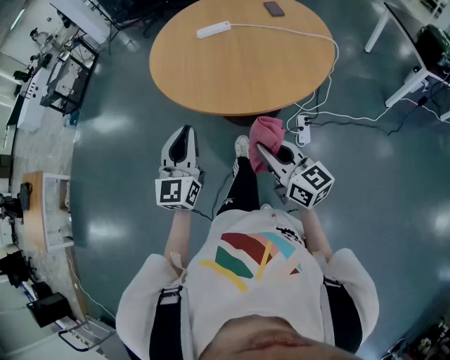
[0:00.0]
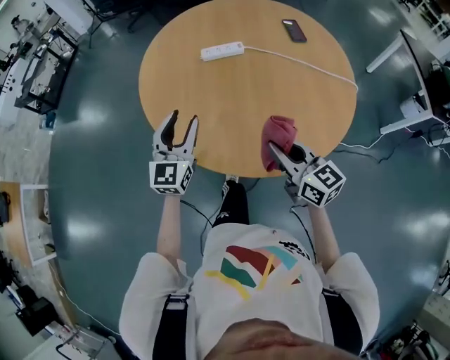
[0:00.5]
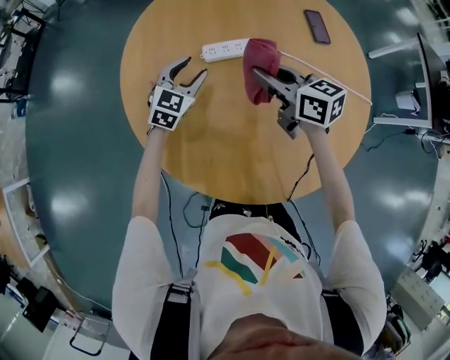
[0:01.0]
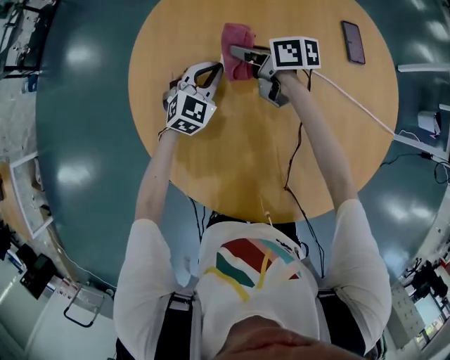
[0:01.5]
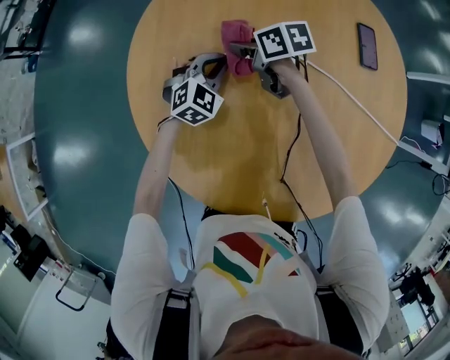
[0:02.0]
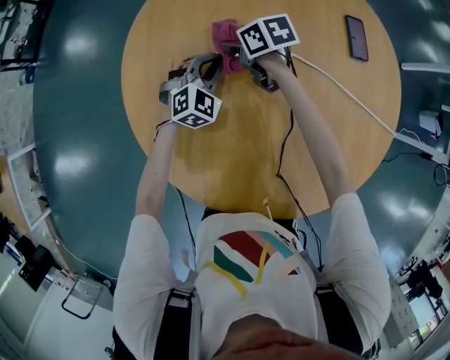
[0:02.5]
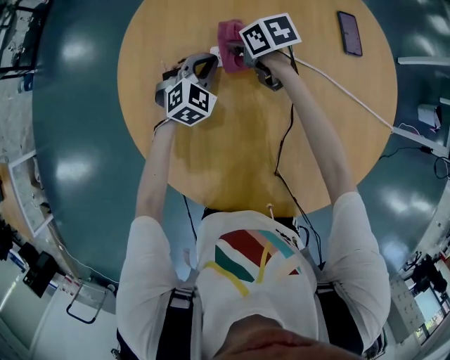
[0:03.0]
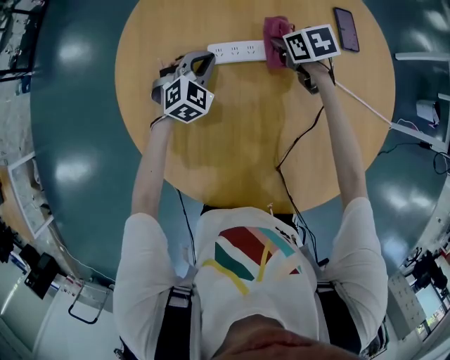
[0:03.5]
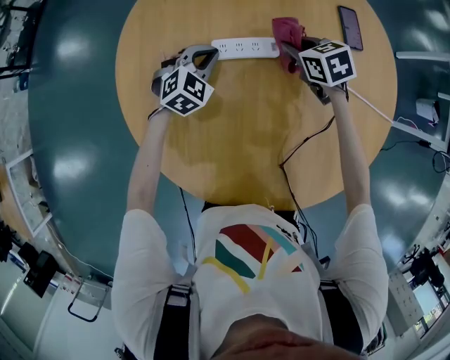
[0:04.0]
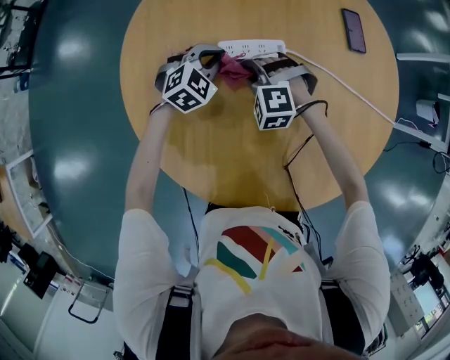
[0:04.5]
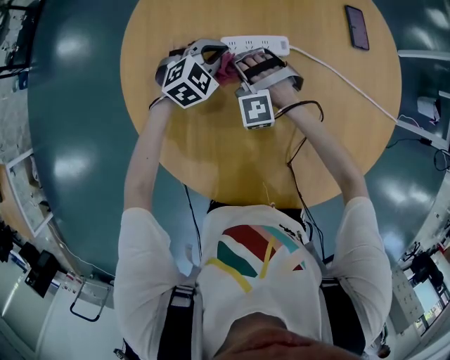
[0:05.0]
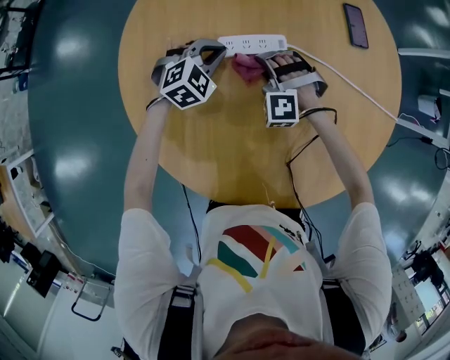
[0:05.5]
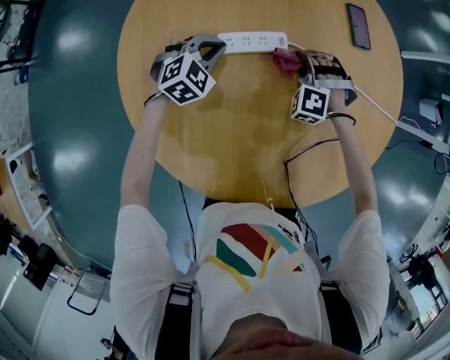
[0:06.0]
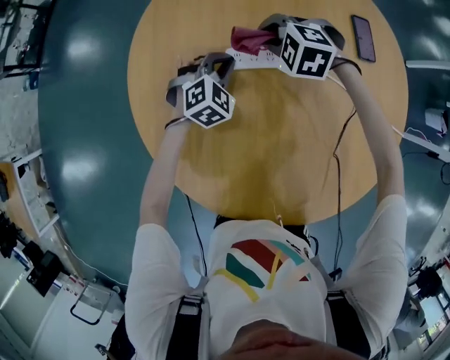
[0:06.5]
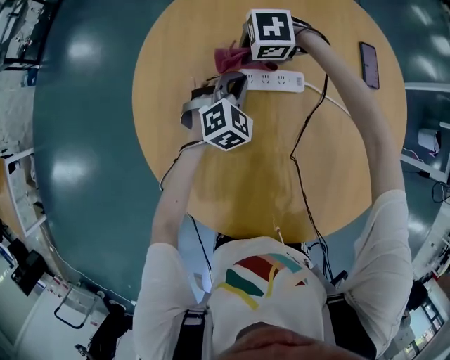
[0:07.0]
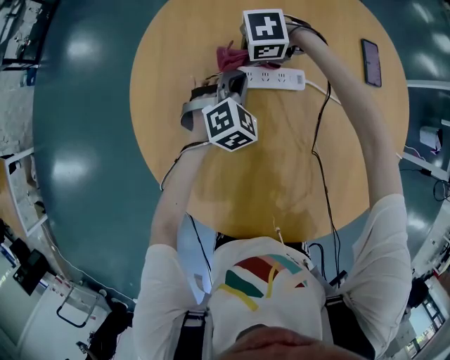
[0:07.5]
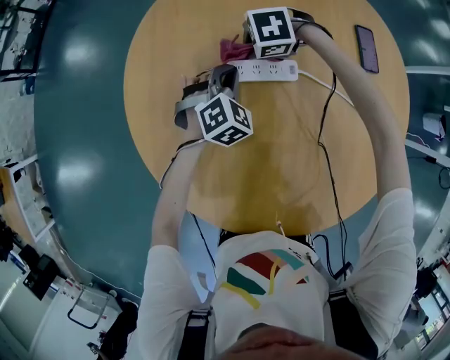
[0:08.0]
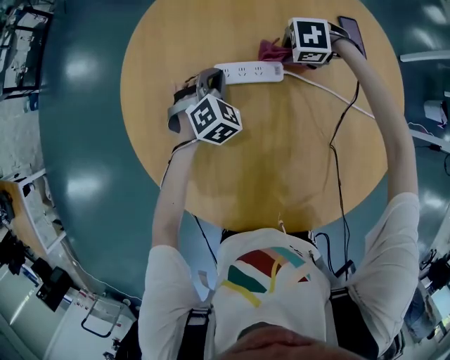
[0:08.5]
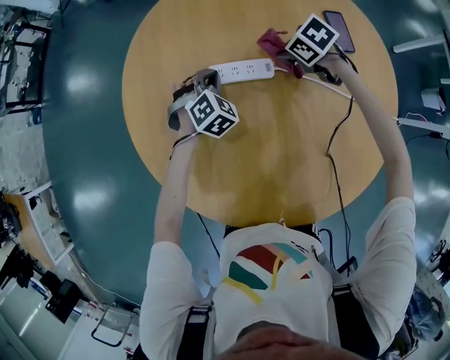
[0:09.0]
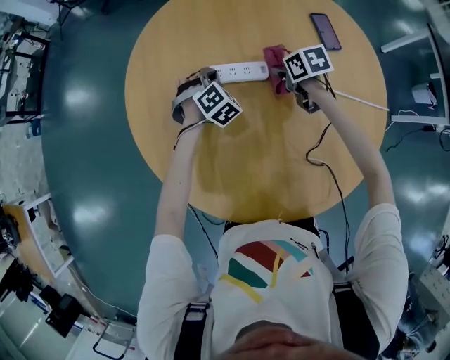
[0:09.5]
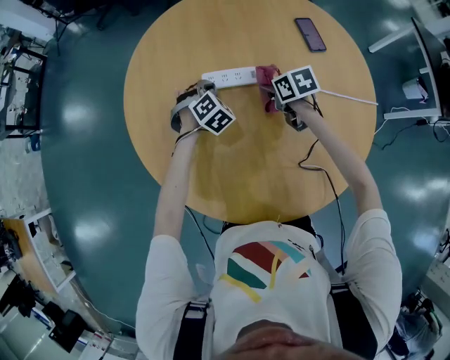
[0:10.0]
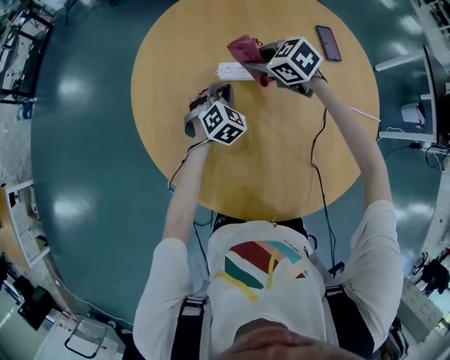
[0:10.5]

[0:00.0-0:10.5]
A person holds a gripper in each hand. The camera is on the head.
0:00.0 to 0:02.0: The pair of grippers is taken forward, roughly 70 cm. The left gripper angles its fingers downward, by about 40 degrees, and opens, then closes once more. Meanwhile the right gripper points its fingers some 40 degrees further downward.
0:02.0 to 0:04.0: The right gripper moves to the right, some 15 cm, and rotates some 30 degrees.
0:04.0 to 0:06.5: The right gripper rotates around the line of its fingers by some 60 degrees, counterclockwise from behind.
0:06.5 to 0:08.5: The right gripper moves roughly 15 cm, and changes its angle by roughly 30 degrees.
0:08.5 to 0:10.5: The right gripper moves some 15 cm, and turns by about 40 degrees. Meanwhile the left gripper shifts by approximately 10 cm.

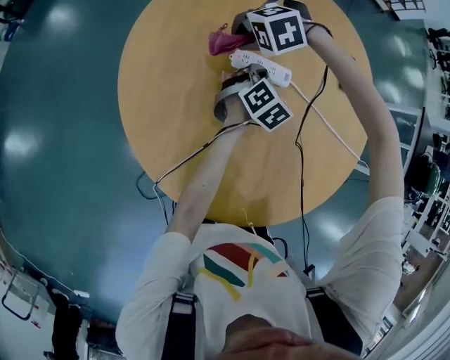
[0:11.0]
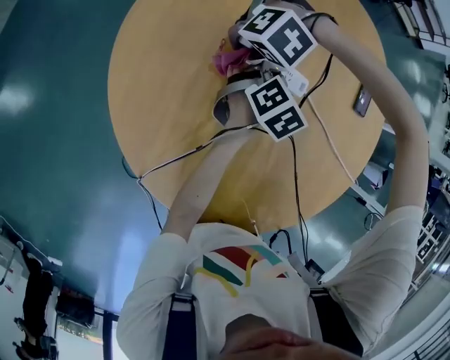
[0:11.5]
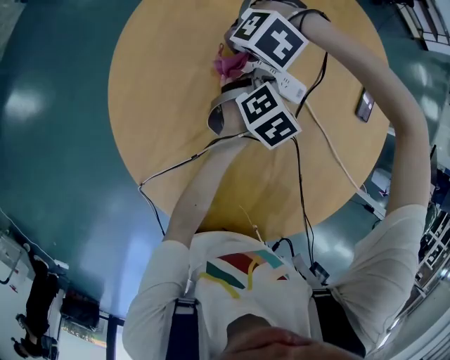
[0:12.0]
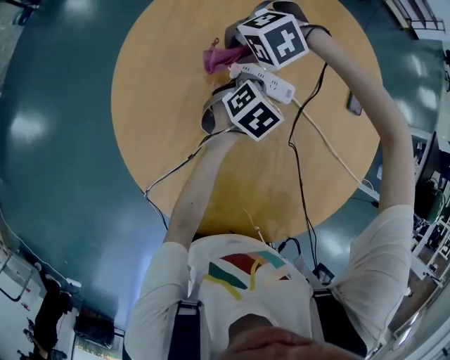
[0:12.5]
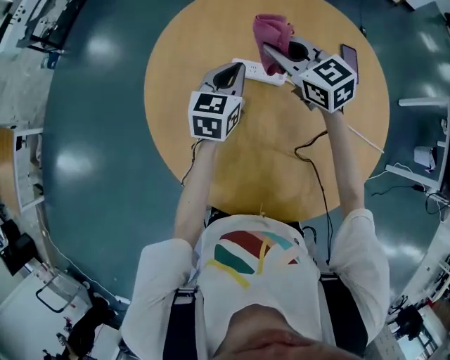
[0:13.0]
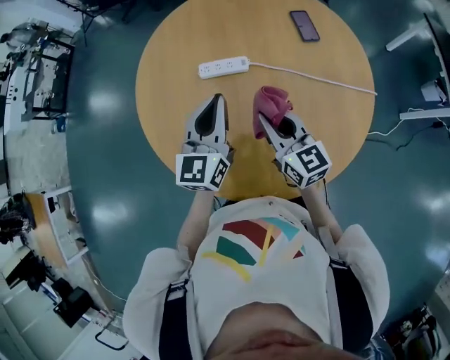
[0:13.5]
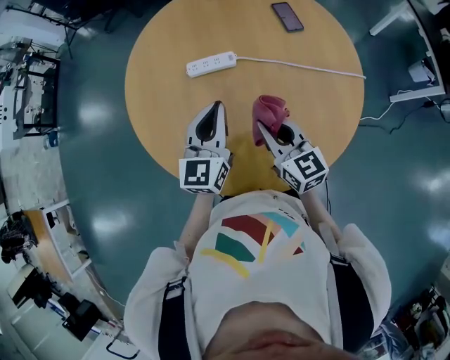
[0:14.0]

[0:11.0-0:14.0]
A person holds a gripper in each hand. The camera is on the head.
0:12.5 to 0:14.0: The left gripper ends up about 30 cm from where it was, and points its fingers roughly 40 degrees further upward, while the right gripper shifts by about 40 cm, and tilts its fingers roughly 70 degrees upward.

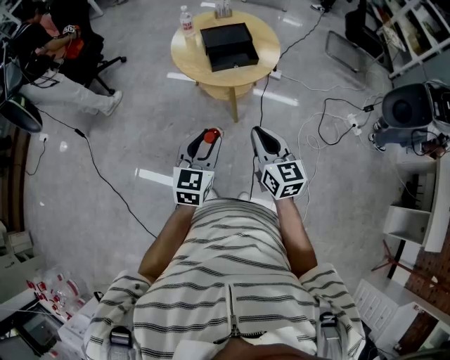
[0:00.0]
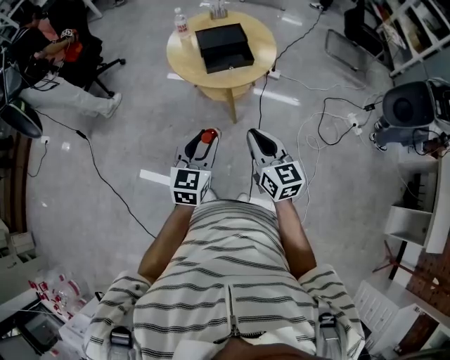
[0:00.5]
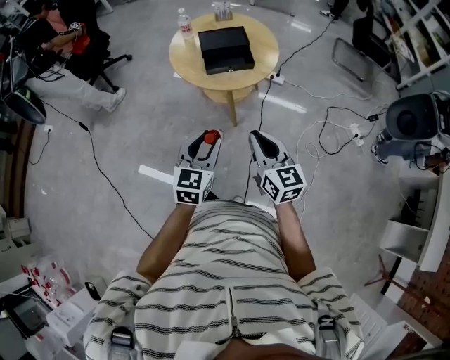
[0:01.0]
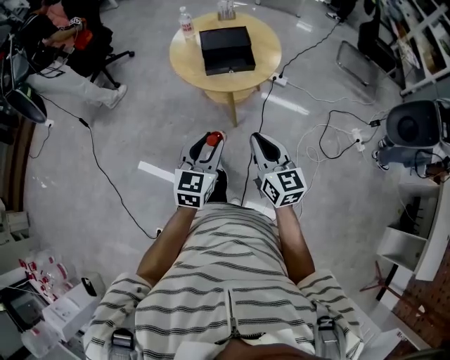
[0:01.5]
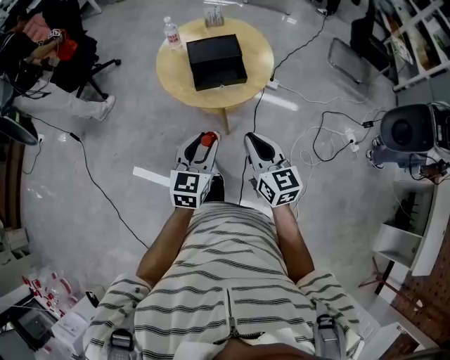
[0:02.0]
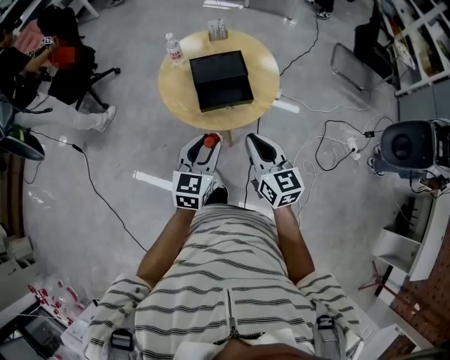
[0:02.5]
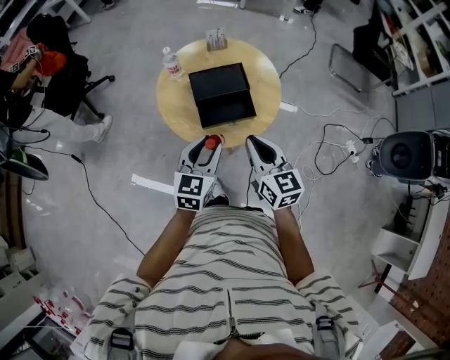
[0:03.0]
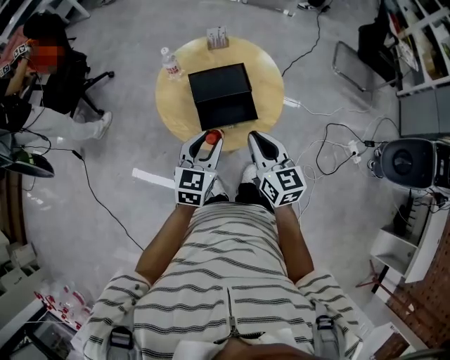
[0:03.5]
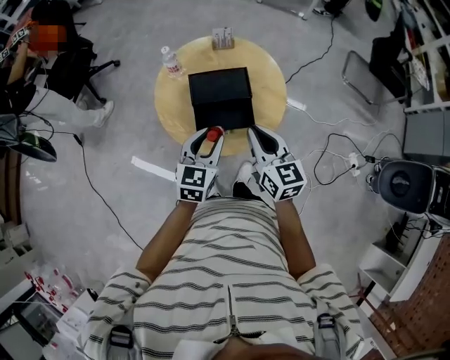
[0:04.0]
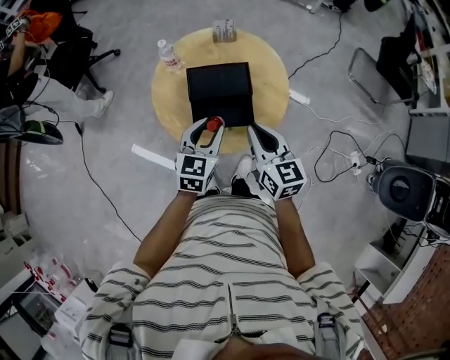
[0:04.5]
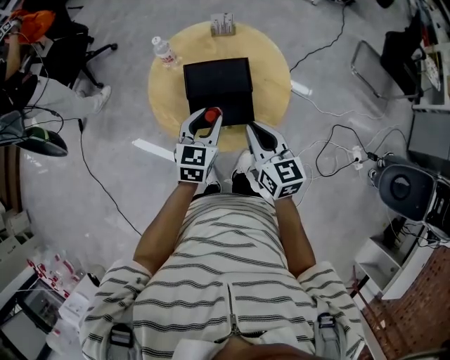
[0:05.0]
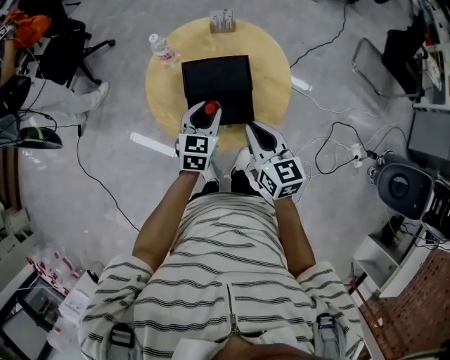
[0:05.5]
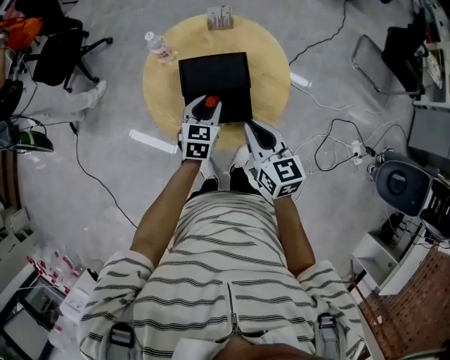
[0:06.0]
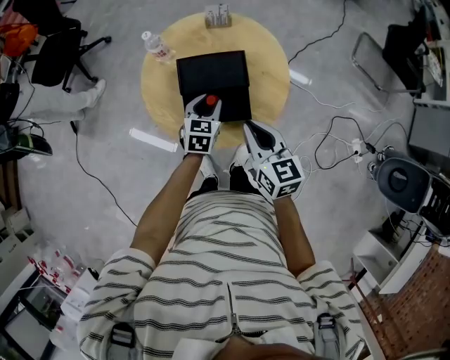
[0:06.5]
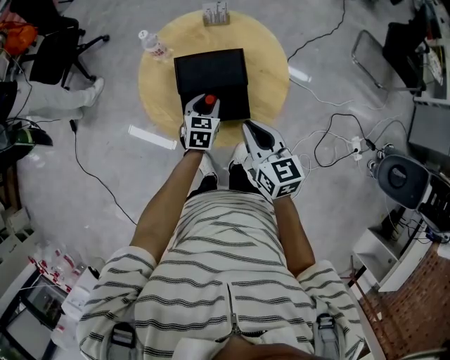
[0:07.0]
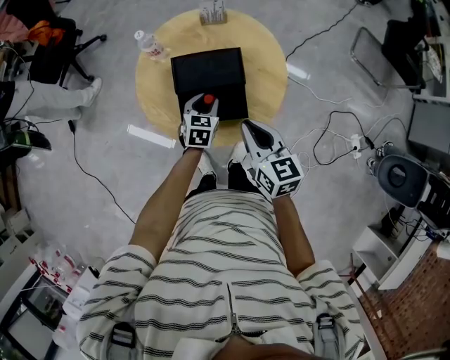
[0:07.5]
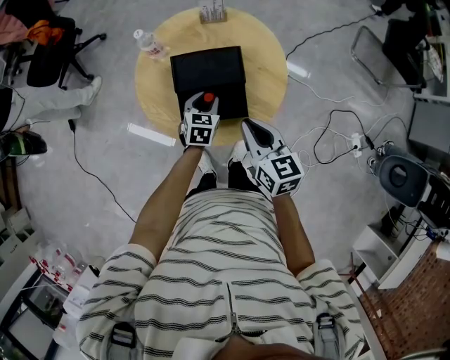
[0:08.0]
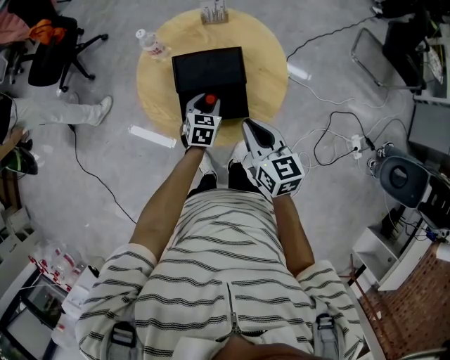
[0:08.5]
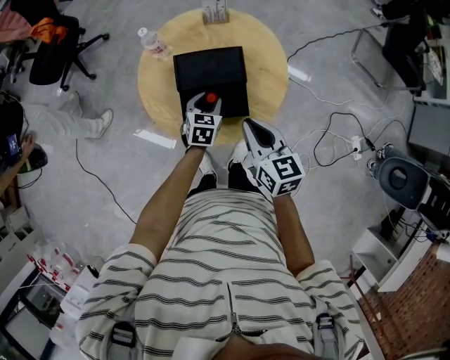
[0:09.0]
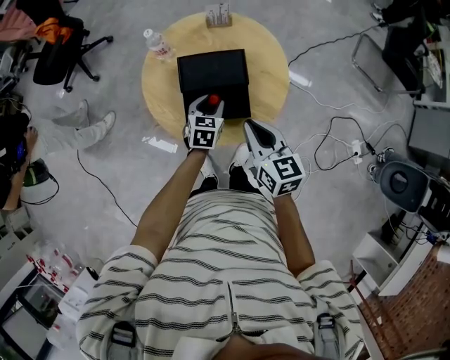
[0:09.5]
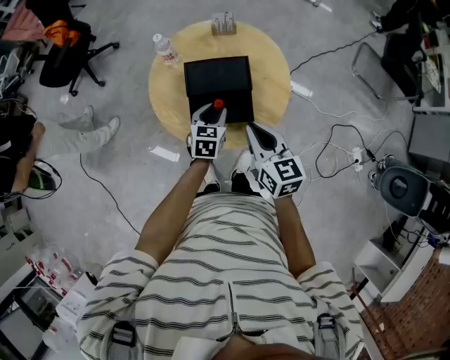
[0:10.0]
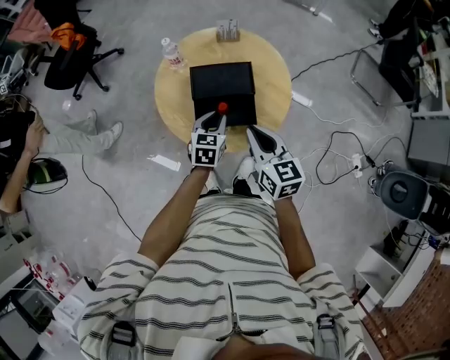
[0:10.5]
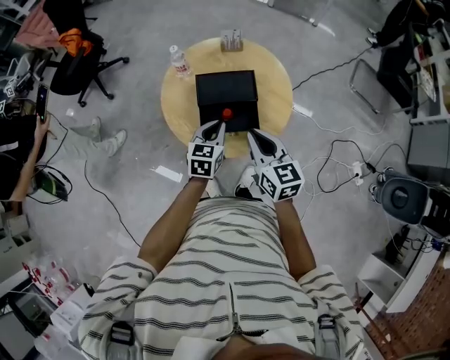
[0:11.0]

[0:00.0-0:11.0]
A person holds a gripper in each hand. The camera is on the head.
0:00.0 to 0:02.0: Both grippers travel together forward and to the right, approximately 15 cm.
0:02.0 to 0:03.5: The grippers both shift forward by roughly 20 cm.
0:03.5 to 0:05.5: The left gripper travels forward and downward by roughly 15 cm, while the right gripper moves forward and downward, some 10 cm.
0:05.5 to 0:07.5: The left gripper travels downward by approximately 10 cm.
0:07.5 to 0:09.0: Both grippers stay put.
0:09.0 to 0:11.0: The left gripper moves upward and backward, approximately 15 cm, and closes its fingers, while the right gripper ends up some 5 cm from where it was.

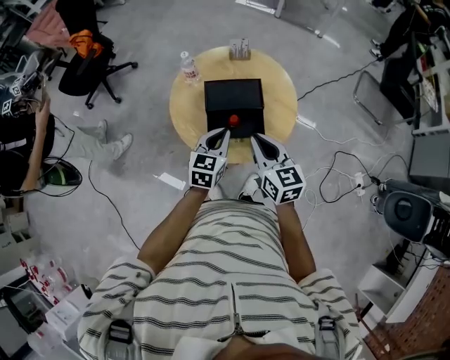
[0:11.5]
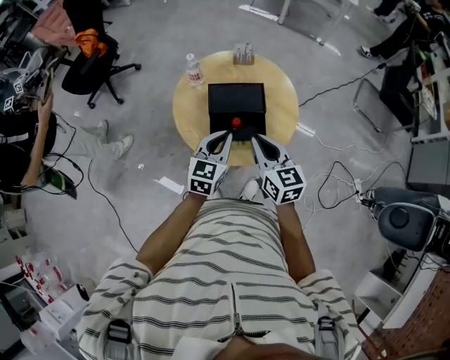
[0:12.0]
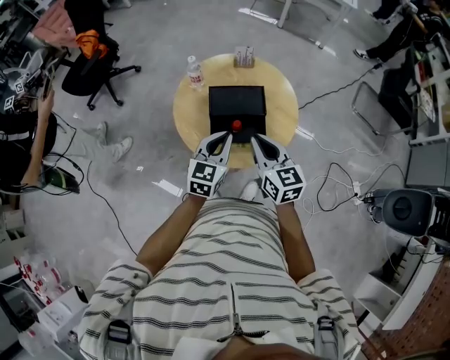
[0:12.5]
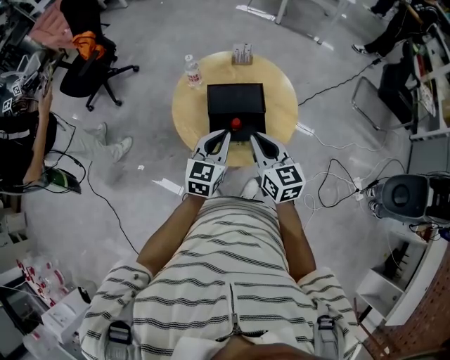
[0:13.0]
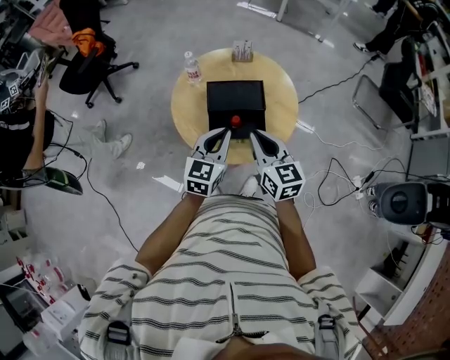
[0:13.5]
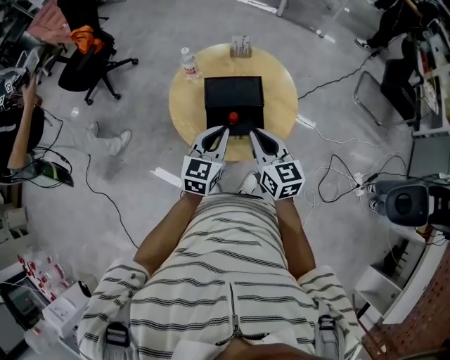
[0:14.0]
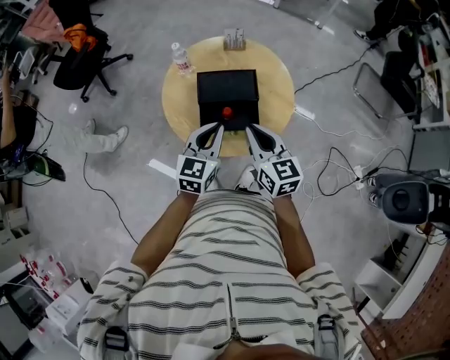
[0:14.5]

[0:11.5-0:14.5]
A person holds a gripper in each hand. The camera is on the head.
0:11.5 to 0:14.5: The grippers make only small movements.
